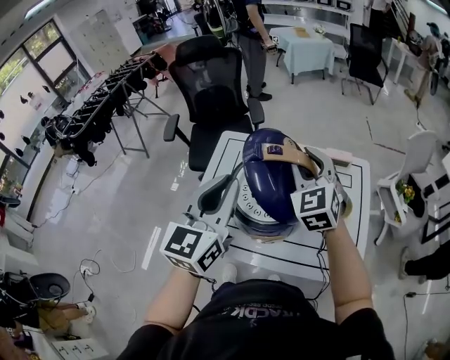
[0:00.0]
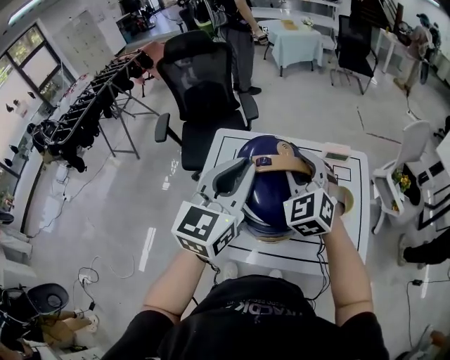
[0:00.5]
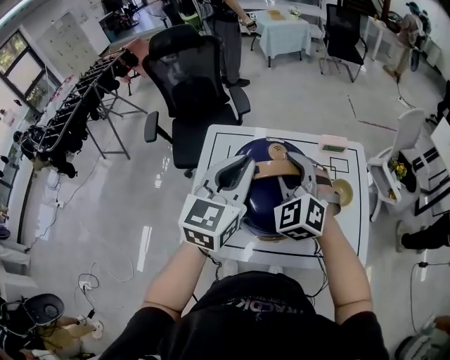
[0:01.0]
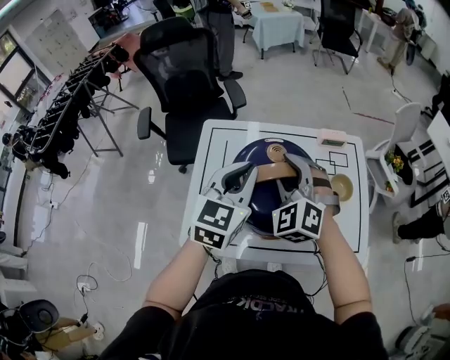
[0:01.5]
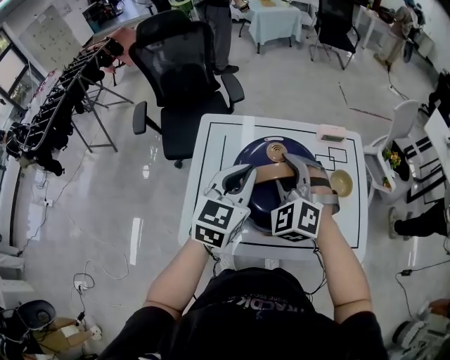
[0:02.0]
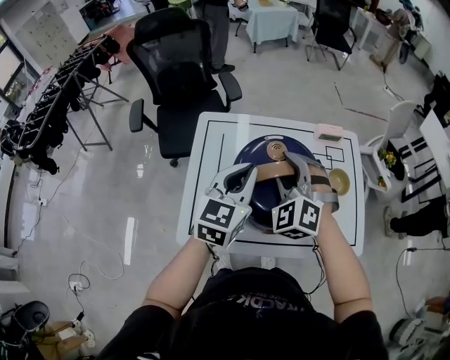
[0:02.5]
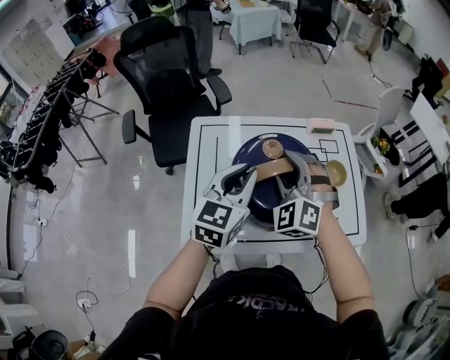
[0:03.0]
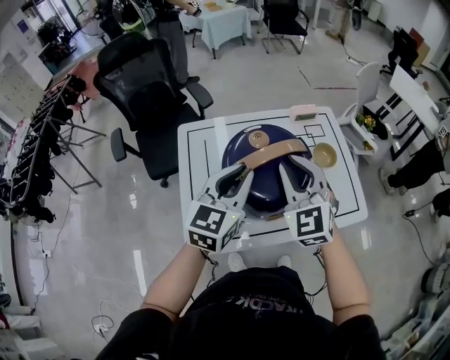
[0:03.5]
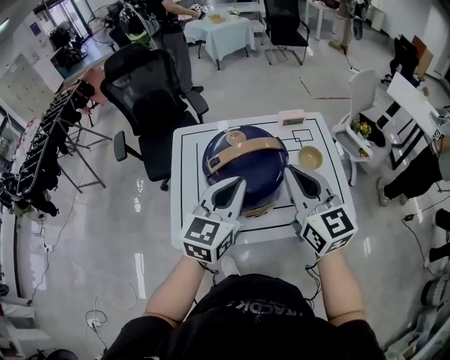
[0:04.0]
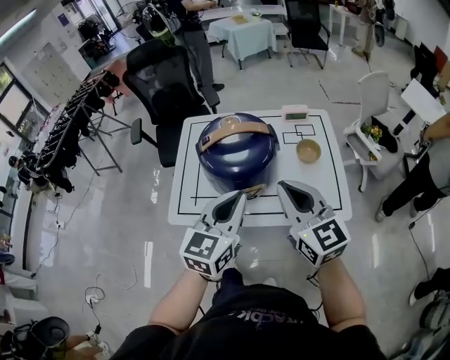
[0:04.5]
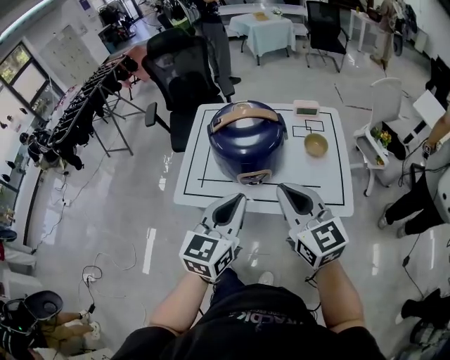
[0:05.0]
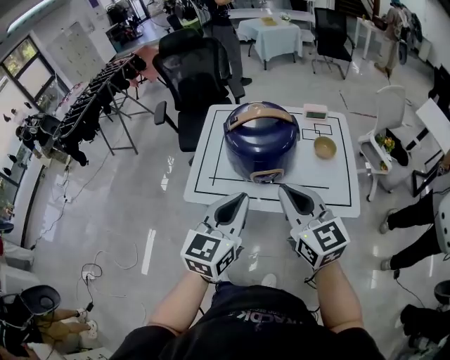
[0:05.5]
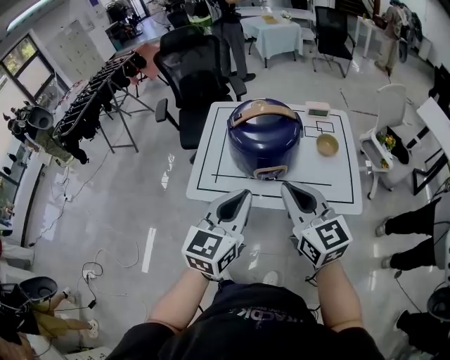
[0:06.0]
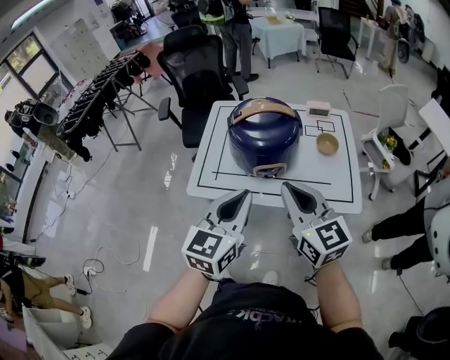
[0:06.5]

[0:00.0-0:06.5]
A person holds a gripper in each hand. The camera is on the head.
0:00.0 to 0:02.0: The left gripper goes approximately 15 cm downward and forward, and changes its angle by about 20 degrees. Meanwhile the right gripper heads downward and to the left, covering approximately 10 cm, and swivels about 30 degrees.
0:02.0 to 0:04.5: Both grippers move backward and to the right, roughly 25 cm. The right gripper rotates around the line of its fingers by some 60 degrees, clockwise from behind, and closes its fingers.
0:04.5 to 0:06.5: The grippers both shift backward and to the left by approximately 10 cm.

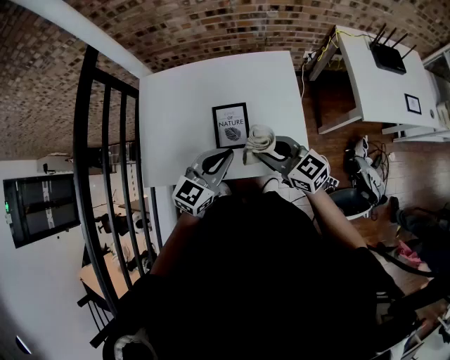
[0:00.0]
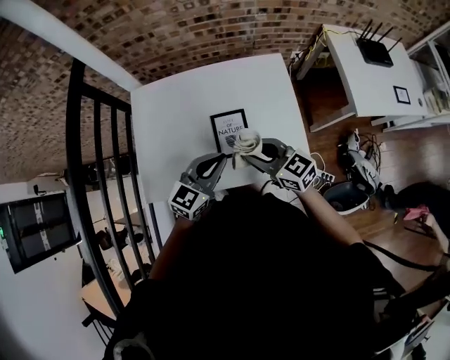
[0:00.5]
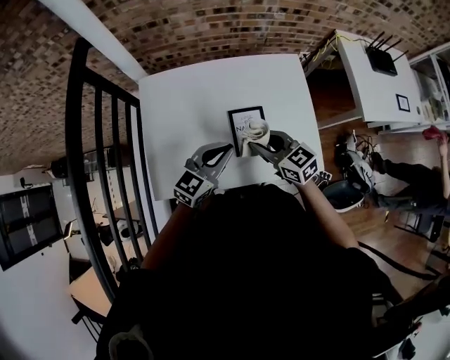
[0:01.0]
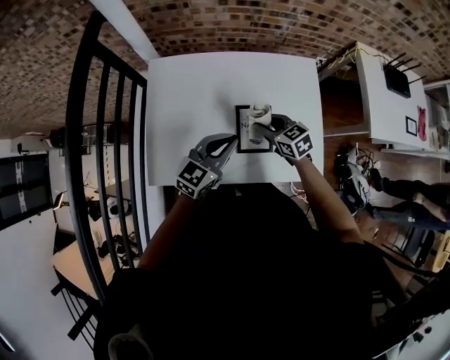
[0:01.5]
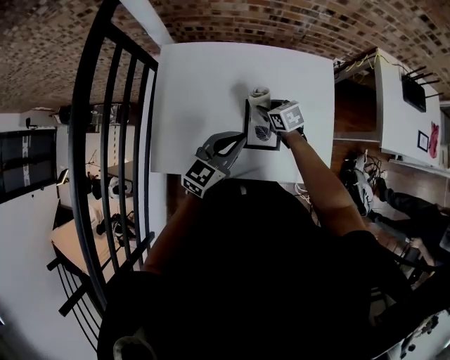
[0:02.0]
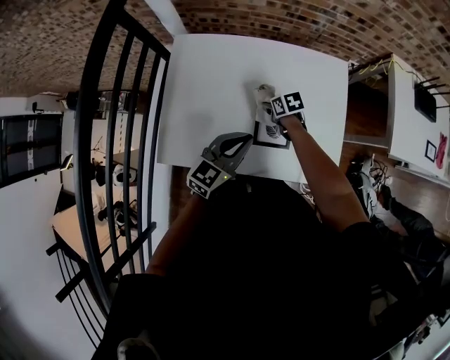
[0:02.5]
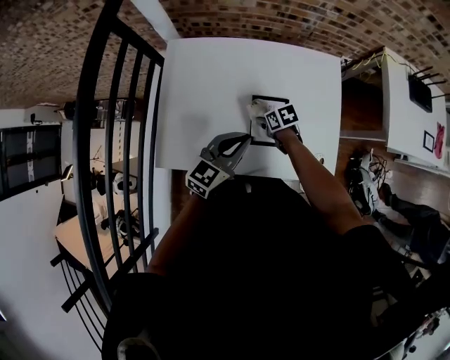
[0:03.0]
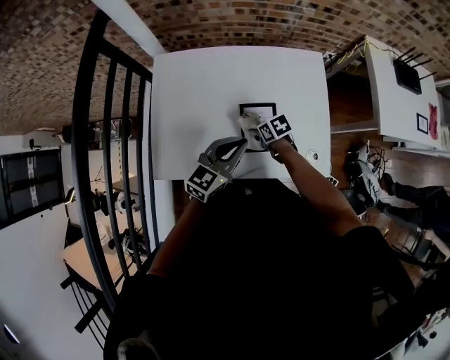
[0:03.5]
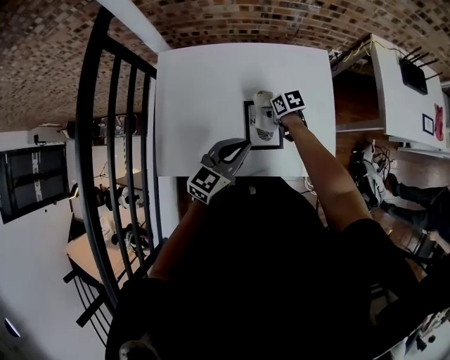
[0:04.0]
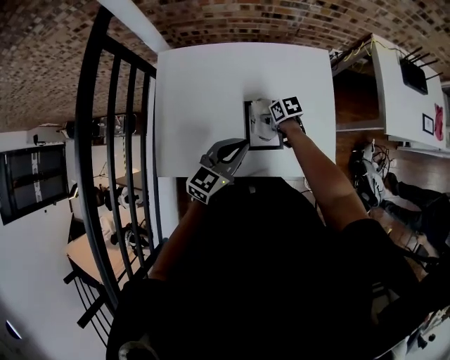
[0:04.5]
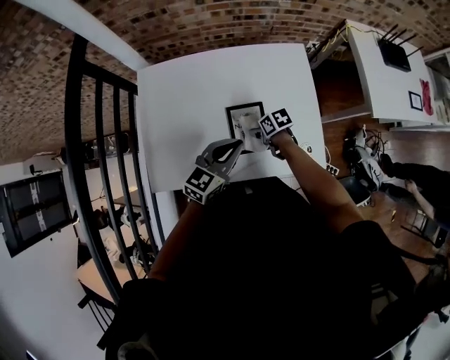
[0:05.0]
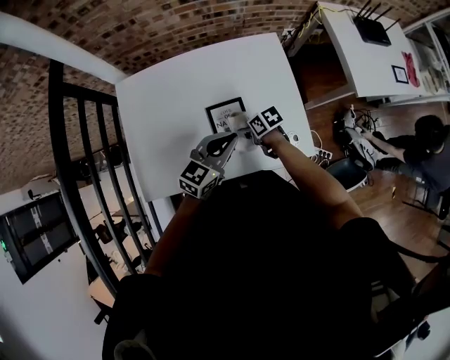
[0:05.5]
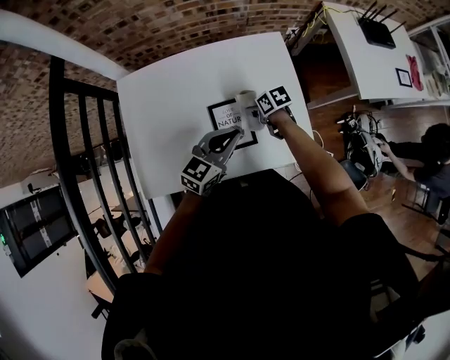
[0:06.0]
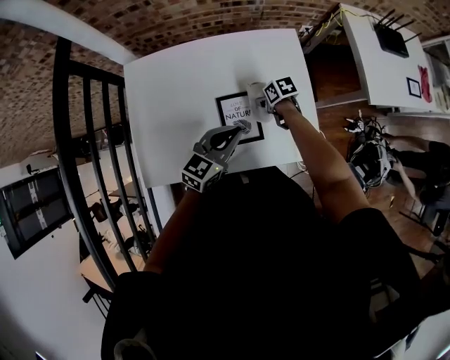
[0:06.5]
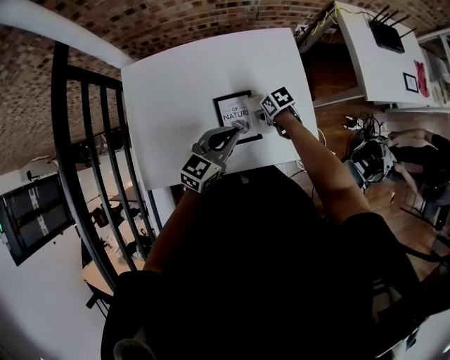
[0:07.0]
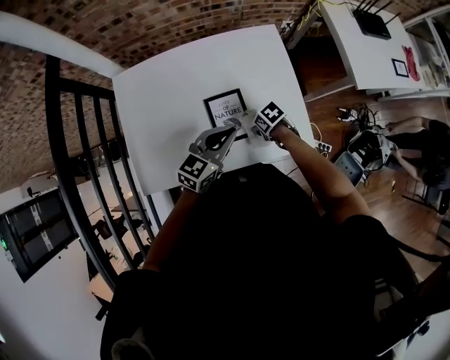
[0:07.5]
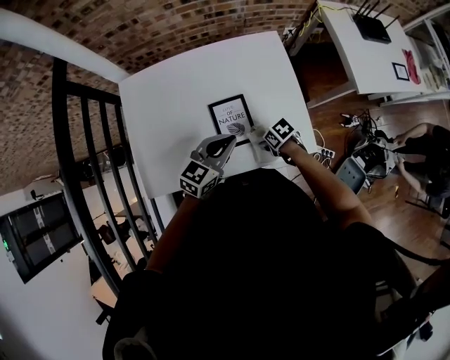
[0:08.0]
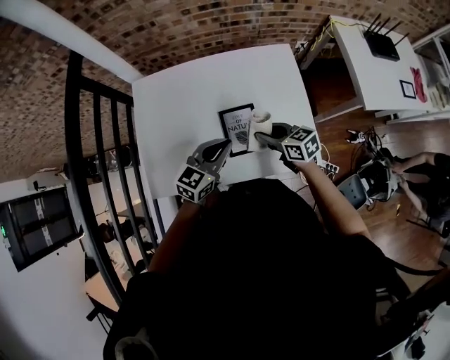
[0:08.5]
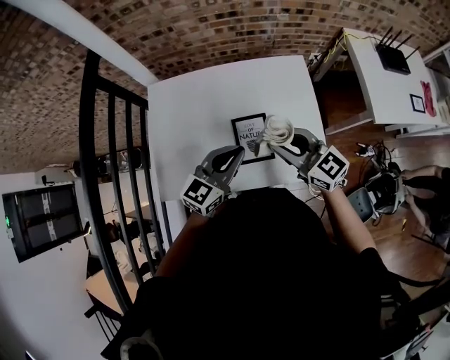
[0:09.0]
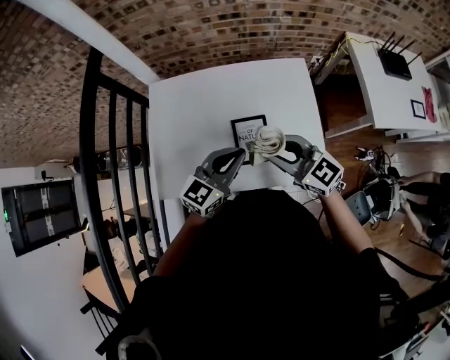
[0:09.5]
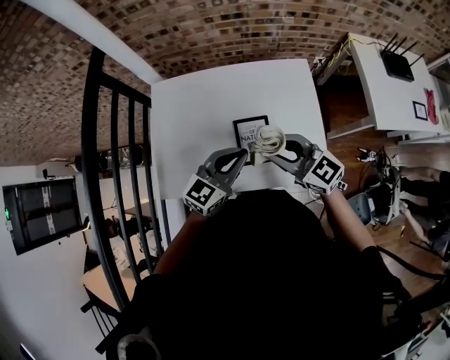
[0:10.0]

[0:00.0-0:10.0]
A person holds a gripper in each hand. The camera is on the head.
0:00.0 to 0:02.0: The left gripper is displaced to the left and forward by approximately 15 cm; the right gripper heads downward, forward and to the left, covering some 30 cm, and tilts its fingers approximately 40 degrees downward.
0:02.0 to 0:04.0: The right gripper goes backward and returns, about 10 cm each way, and turns by about 20 degrees.
0:04.0 to 0:06.0: The right gripper shifts by some 10 cm; the left gripper ends up some 10 cm from where it was.
0:06.0 to 0:08.0: The right gripper moves approximately 15 cm.
0:08.0 to 0:10.0: The left gripper goes approximately 10 cm upward. The right gripper shifts roughly 35 cm upward, and tips its fingers upward by approximately 50 degrees.

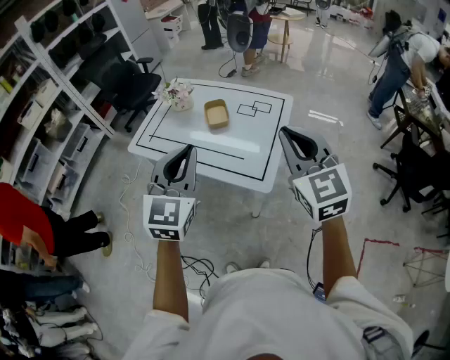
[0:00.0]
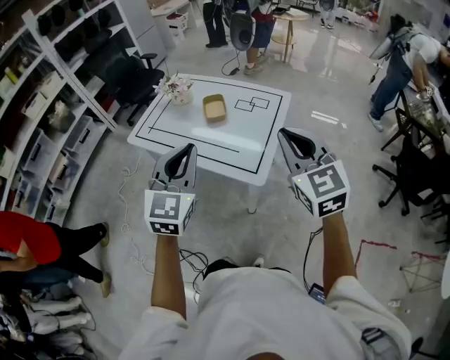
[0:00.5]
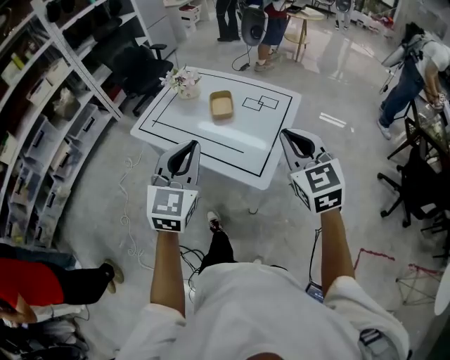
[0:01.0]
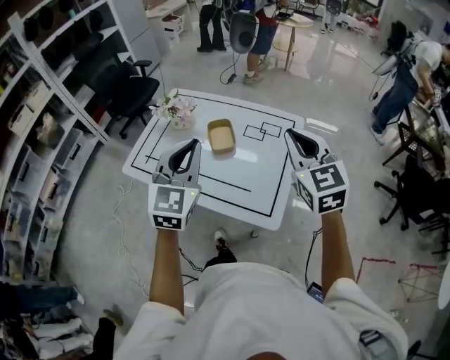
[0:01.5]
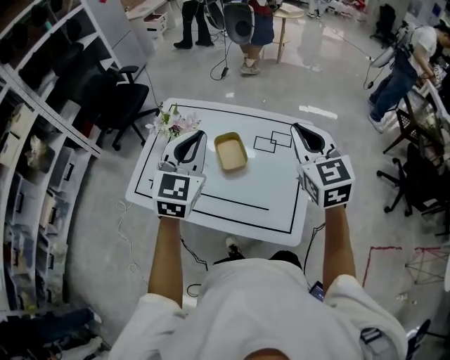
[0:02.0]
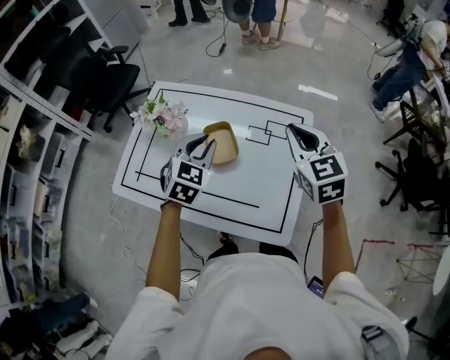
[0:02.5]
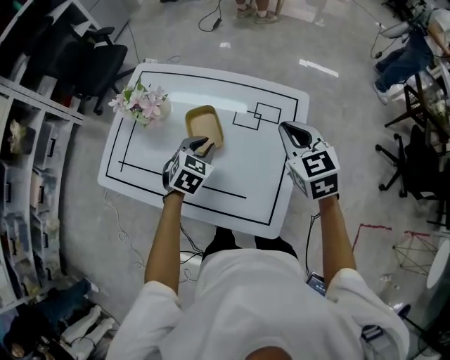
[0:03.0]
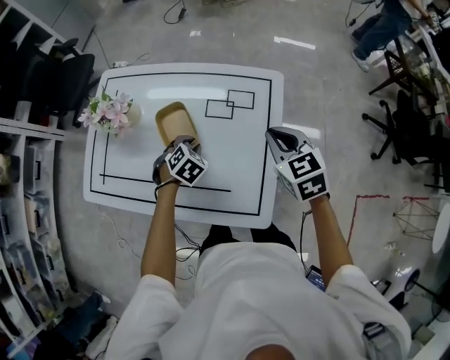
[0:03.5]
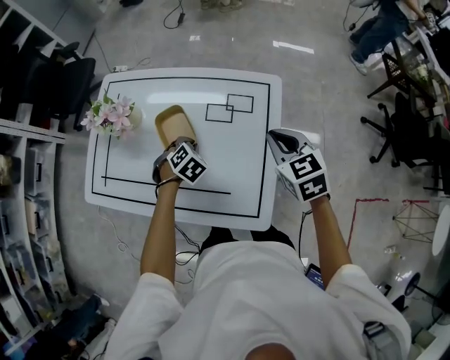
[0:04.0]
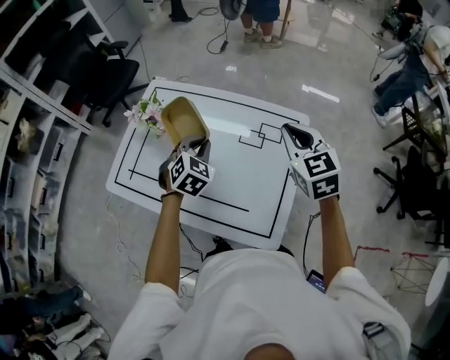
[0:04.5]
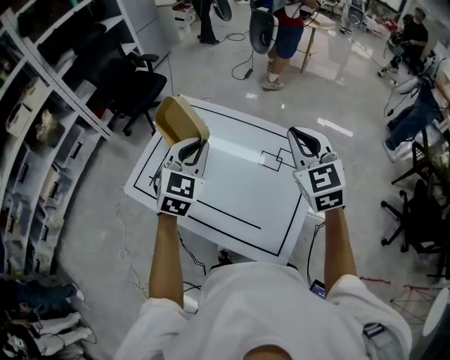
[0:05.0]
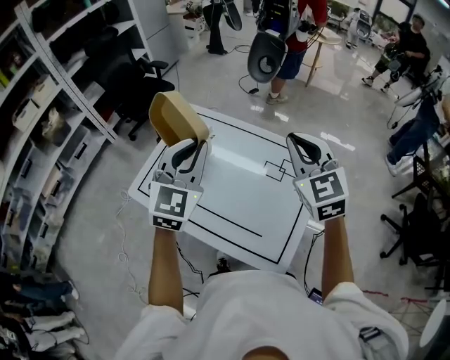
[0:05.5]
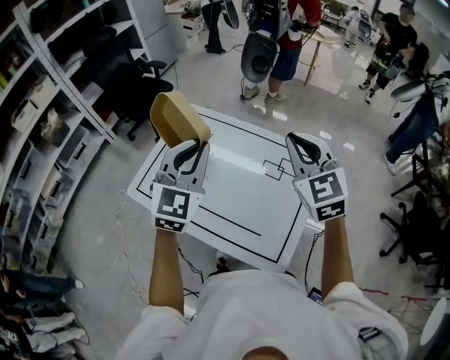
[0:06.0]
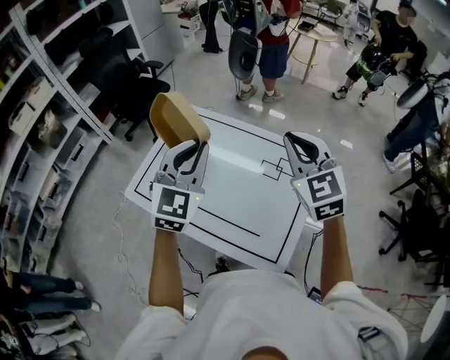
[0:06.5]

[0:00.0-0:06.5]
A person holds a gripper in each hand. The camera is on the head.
0:00.0 to 0:02.0: The two grippers go some 35 cm forward.
0:02.0 to 0:04.5: The right gripper shifts approximately 15 cm downward, forward and to the right; the left gripper is displaced downward and forward by about 20 cm, and tips its fingers downward by approximately 30 degrees.
0:04.5 to 0:06.5: The left gripper heads upward, covering approximately 25 cm, and tilts its fingers approximately 30 degrees upward. The right gripper is displaced upward and to the left by approximately 15 cm.

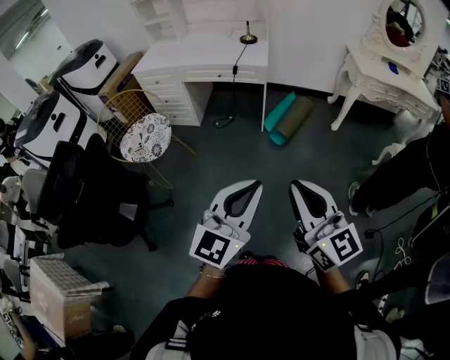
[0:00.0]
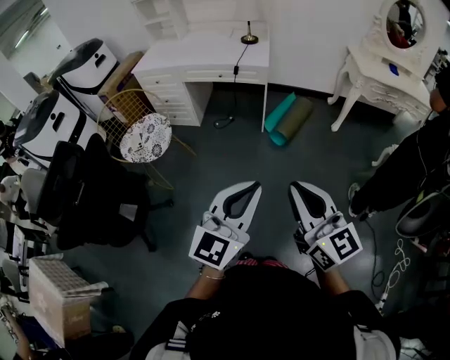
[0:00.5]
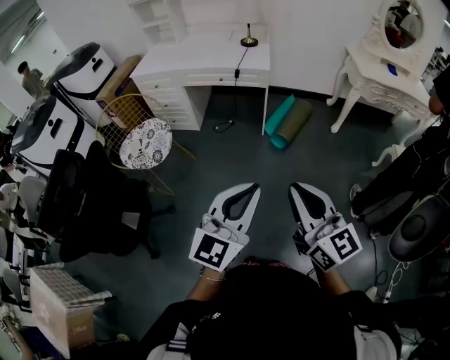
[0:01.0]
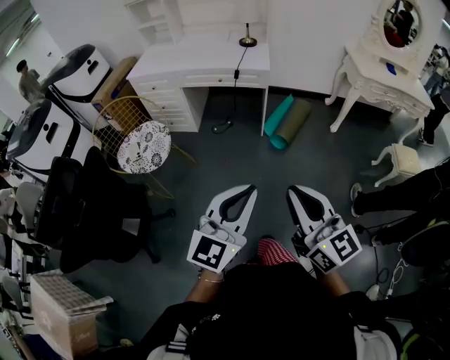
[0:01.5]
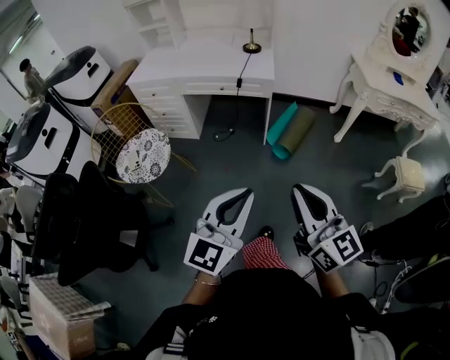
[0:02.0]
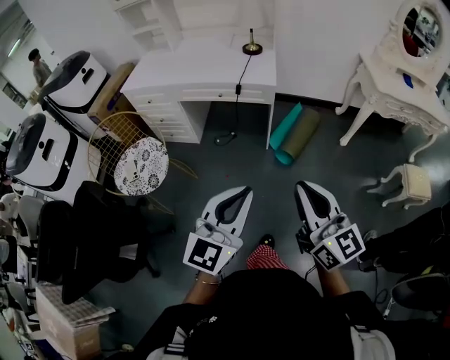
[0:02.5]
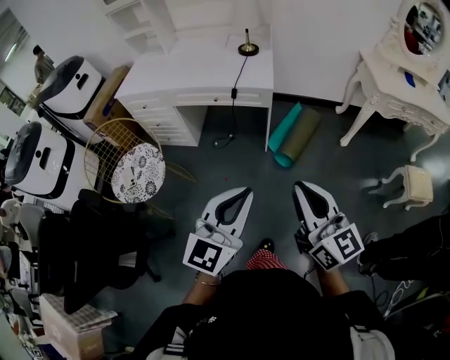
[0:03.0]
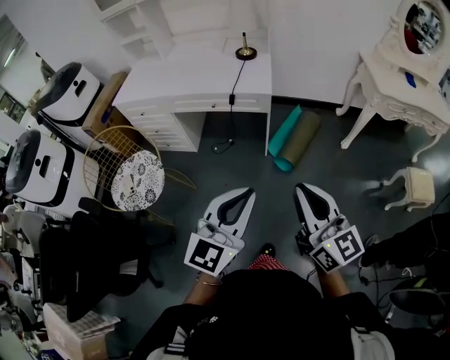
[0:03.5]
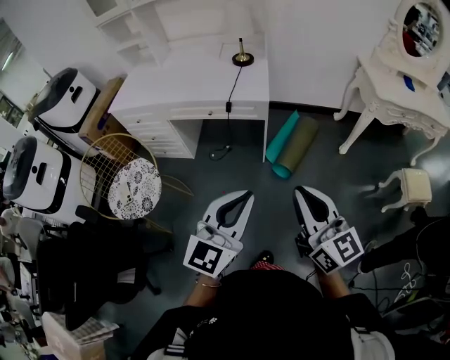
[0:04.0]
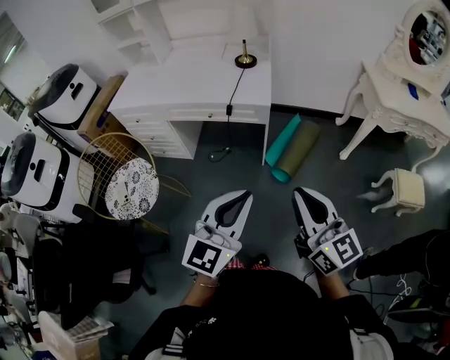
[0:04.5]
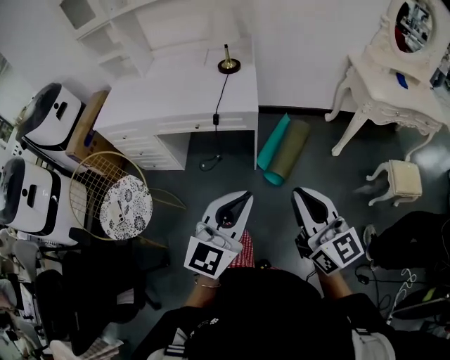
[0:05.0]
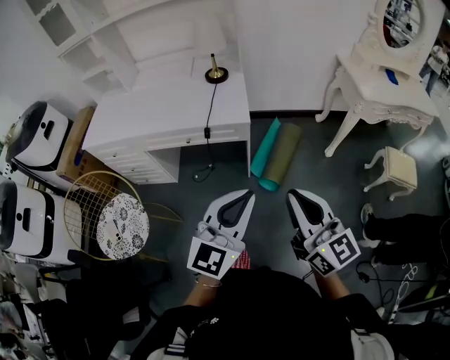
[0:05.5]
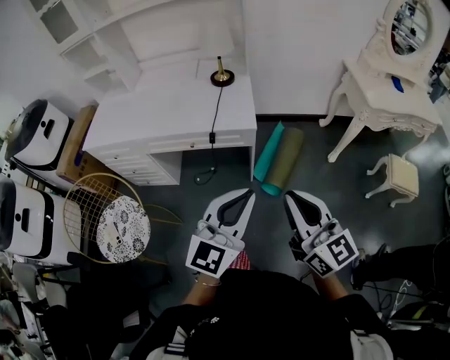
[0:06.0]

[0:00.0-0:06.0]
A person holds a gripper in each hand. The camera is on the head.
0:00.0 to 0:02.0: The right gripper shifts some 10 cm forward, while the left gripper shifts about 15 cm forward and to the left.
0:02.0 to 0:04.0: The two grippers go approximately 20 cm forward.
0:04.0 to 0:06.0: Both grippers travel together forward, about 15 cm.
